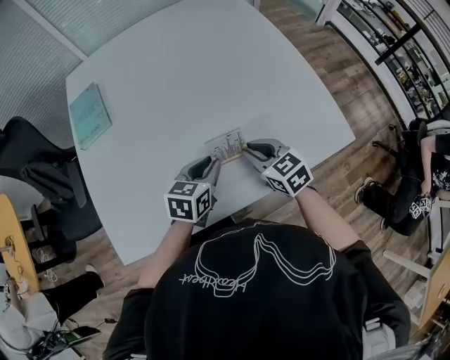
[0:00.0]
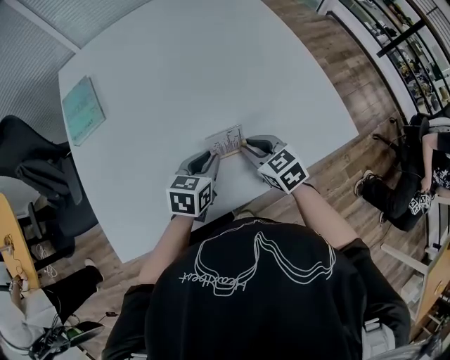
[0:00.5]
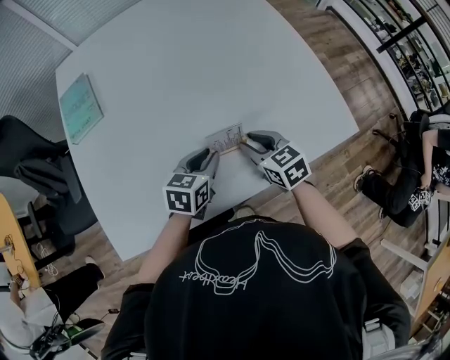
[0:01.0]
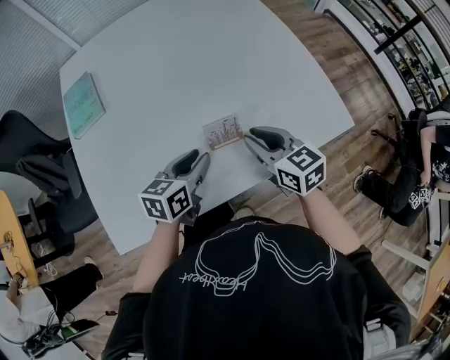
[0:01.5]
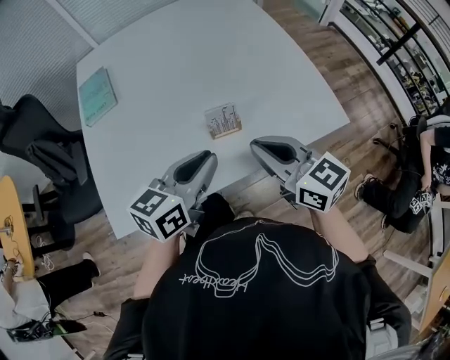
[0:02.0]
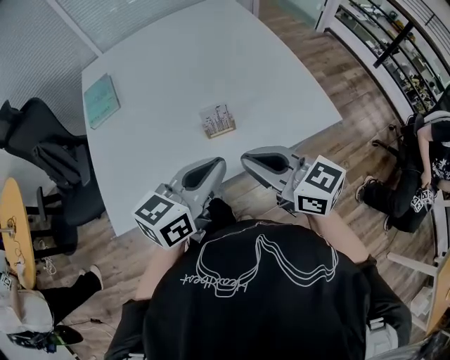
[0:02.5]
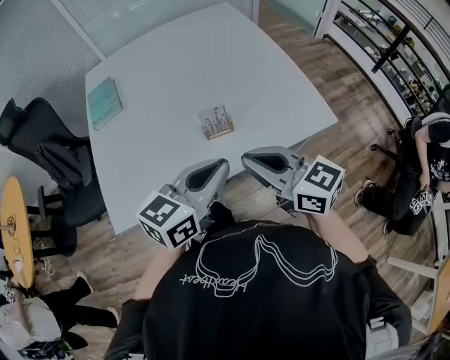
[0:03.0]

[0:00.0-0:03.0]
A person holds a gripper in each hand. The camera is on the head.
0:00.0 to 0:01.5: The right gripper travels upward by roughly 5 cm.
0:01.5 to 0:03.0: The left gripper heads upward, backward and to the right, covering some 25 cm, rotates approximately 20 degrees, and closes its fingers; the right gripper is displaced backward and upward by approximately 20 cm, and turns by about 20 degrees.

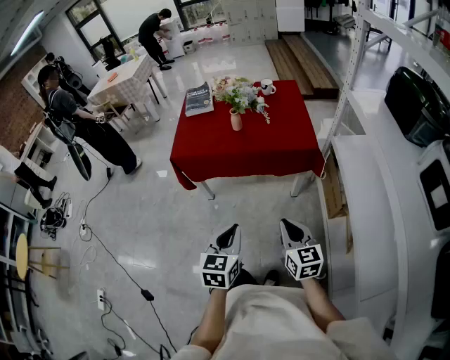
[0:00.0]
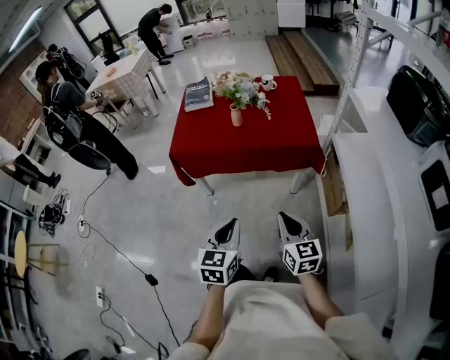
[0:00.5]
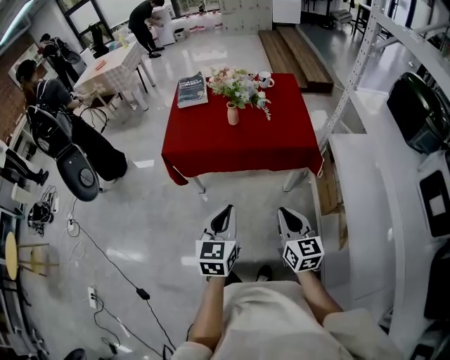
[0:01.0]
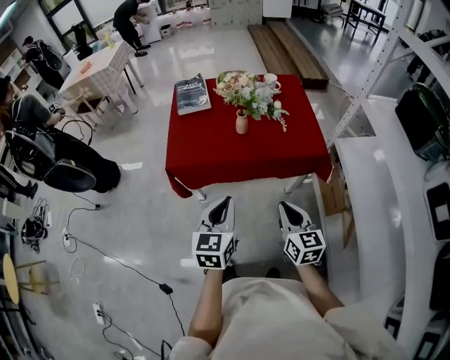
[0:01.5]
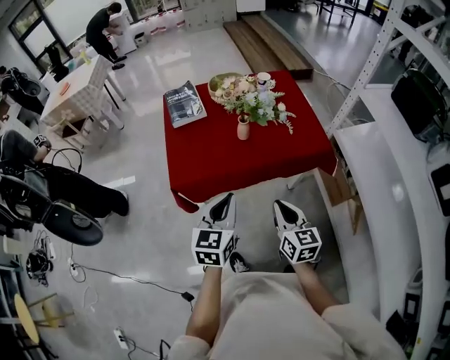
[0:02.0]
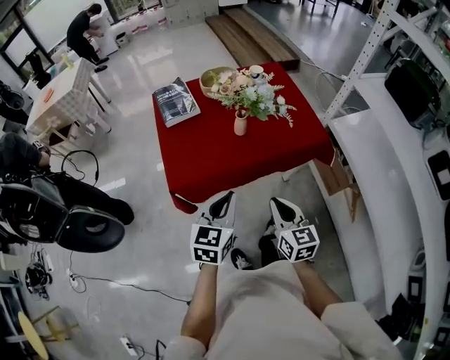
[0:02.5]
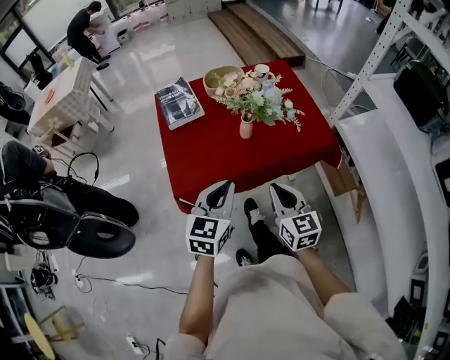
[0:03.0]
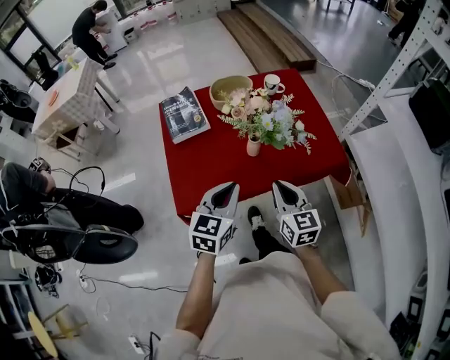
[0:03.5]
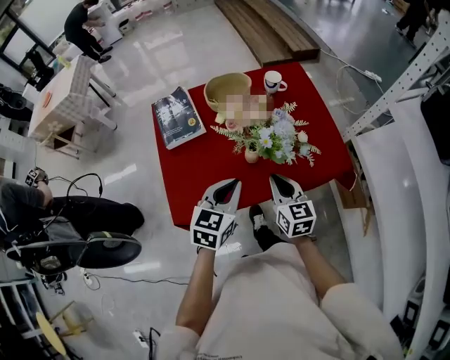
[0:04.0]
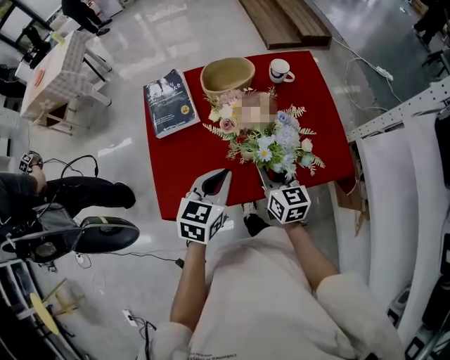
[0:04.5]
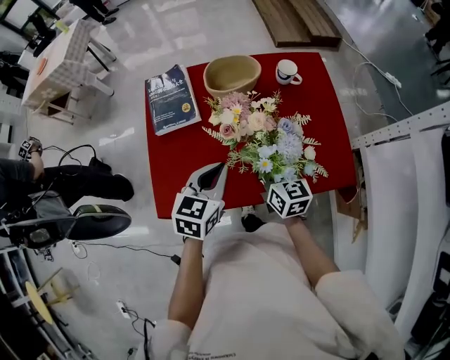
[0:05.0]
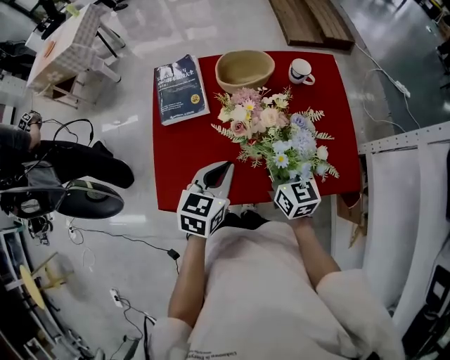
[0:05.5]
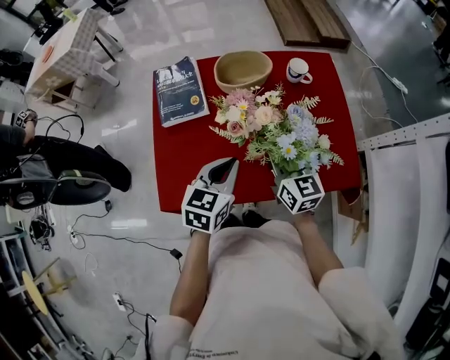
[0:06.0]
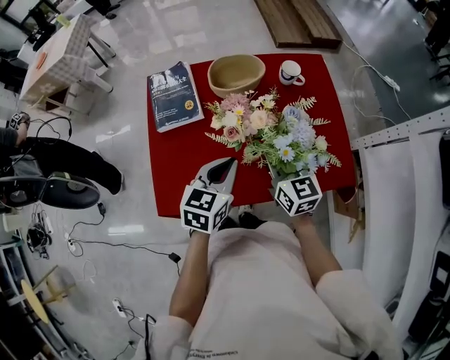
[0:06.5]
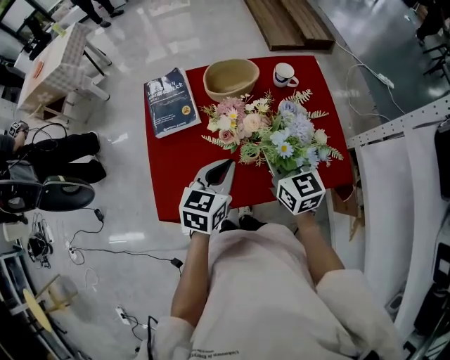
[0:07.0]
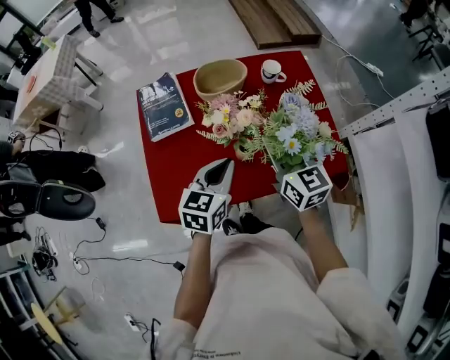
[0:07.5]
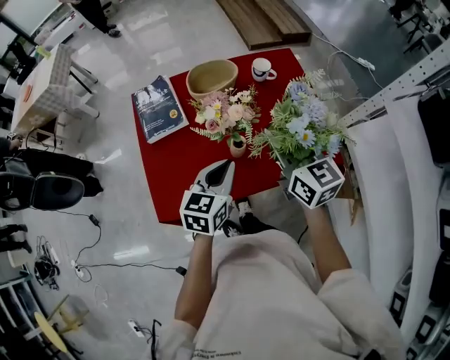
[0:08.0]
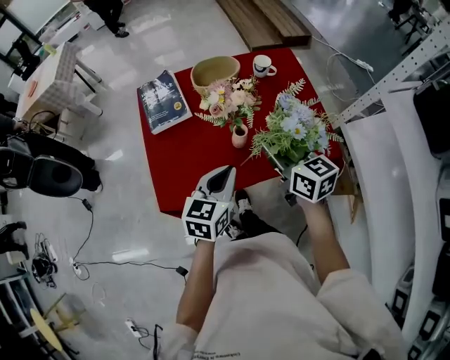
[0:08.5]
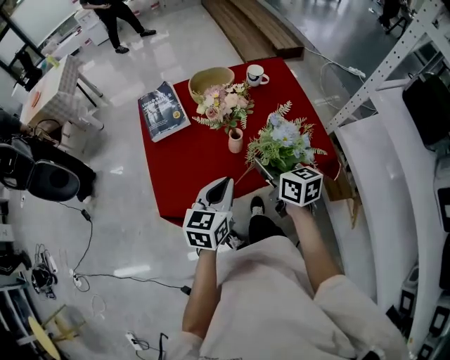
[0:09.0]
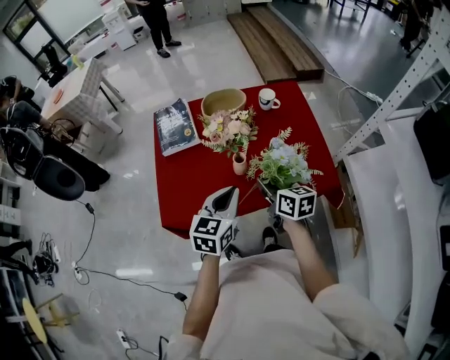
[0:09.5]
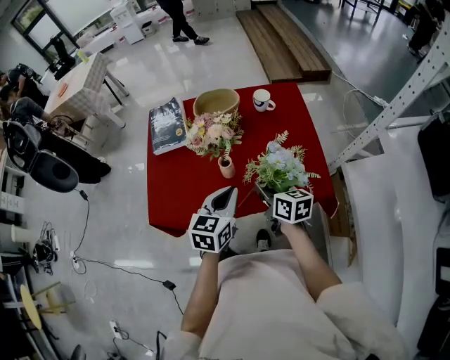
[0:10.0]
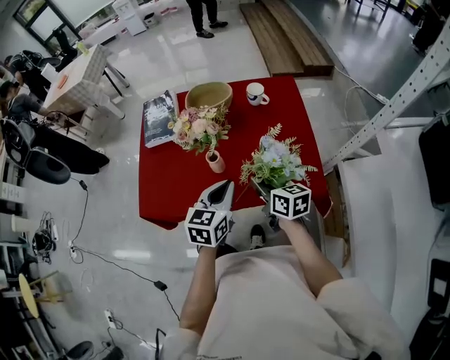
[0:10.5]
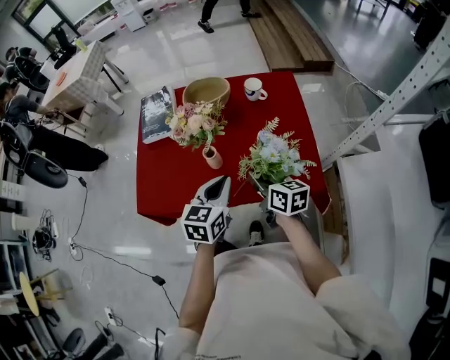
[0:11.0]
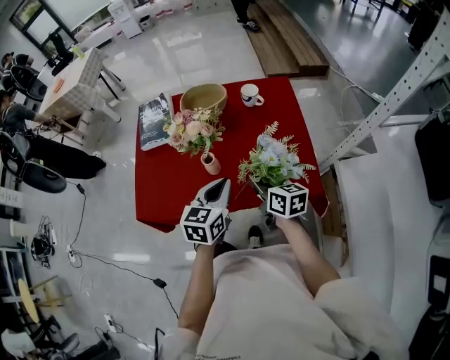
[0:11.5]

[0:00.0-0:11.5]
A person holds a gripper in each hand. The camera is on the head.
0:00.0 to 0:02.0: The grippers both shift forward and to the left by about 30 cm.
0:02.0 to 0:04.0: The grippers both shift forward by roughly 25 cm.
0:04.0 to 0:06.0: The two grippers go about 10 cm forward. The right gripper opens, then closes once more.
0:06.0 to 0:07.5: The right gripper moves upward, some 10 cm.
0:07.5 to 0:09.5: The right gripper is displaced backward and downward by roughly 10 cm, and rotates some 30 degrees, while the left gripper is displaced backward by approximately 10 cm.
0:09.5 to 0:11.5: The grippers both shift to the right by approximately 10 cm.

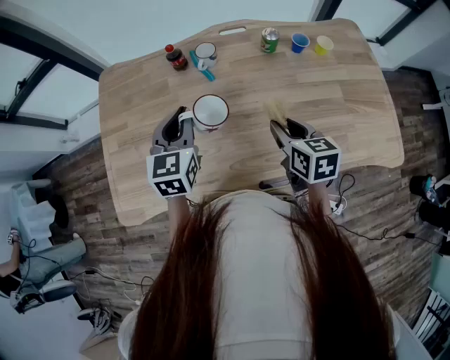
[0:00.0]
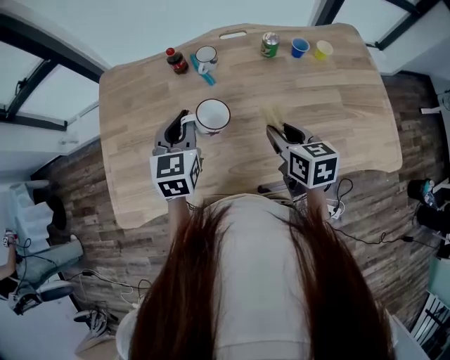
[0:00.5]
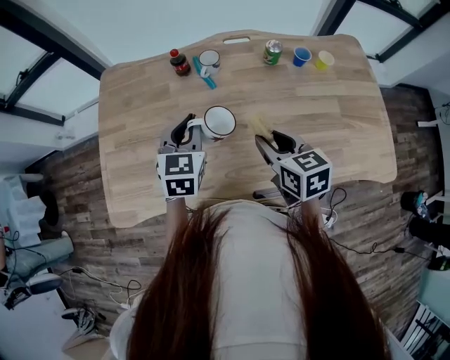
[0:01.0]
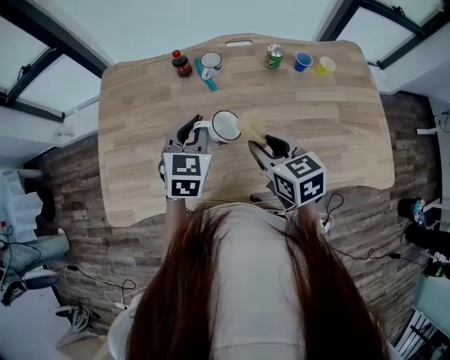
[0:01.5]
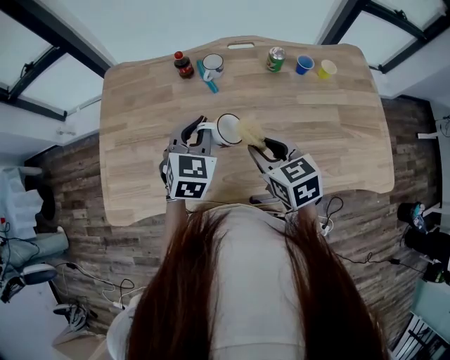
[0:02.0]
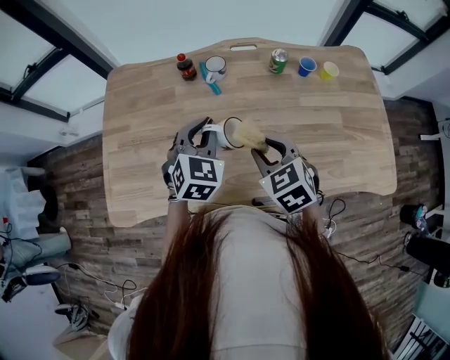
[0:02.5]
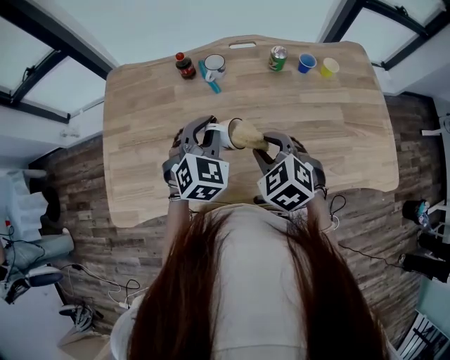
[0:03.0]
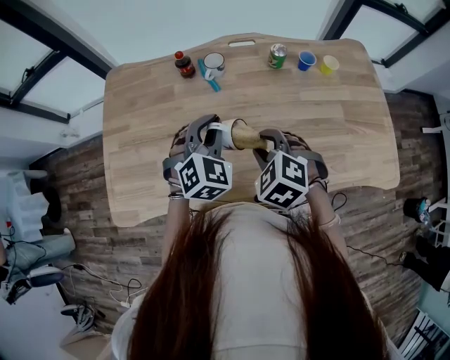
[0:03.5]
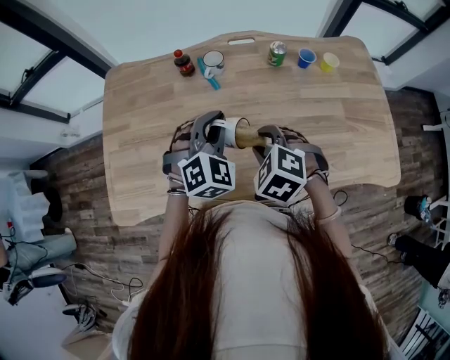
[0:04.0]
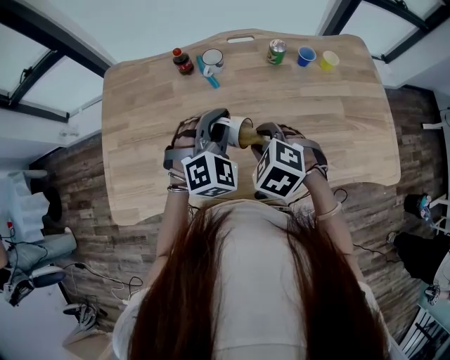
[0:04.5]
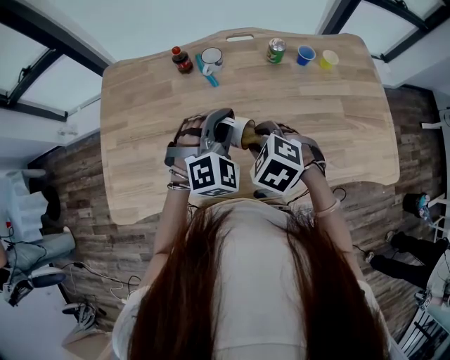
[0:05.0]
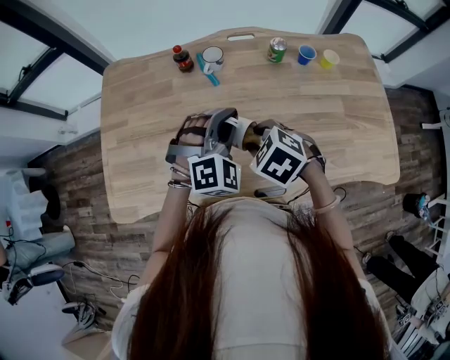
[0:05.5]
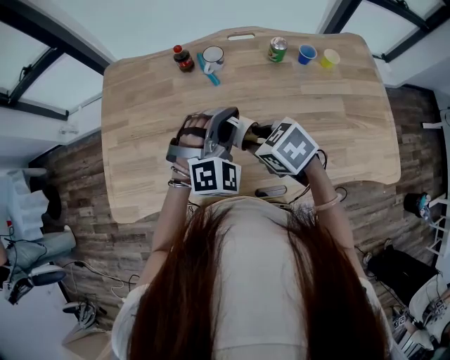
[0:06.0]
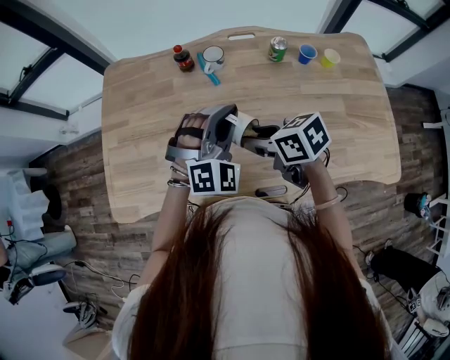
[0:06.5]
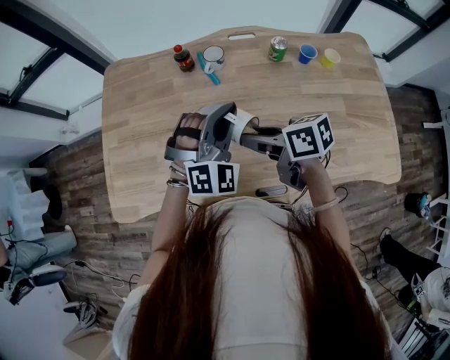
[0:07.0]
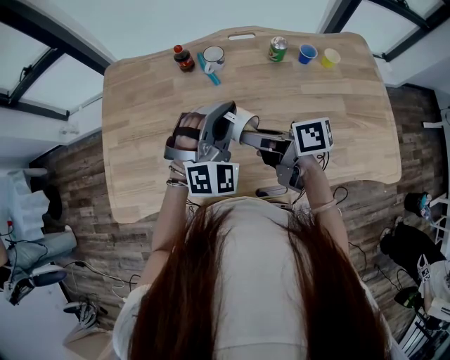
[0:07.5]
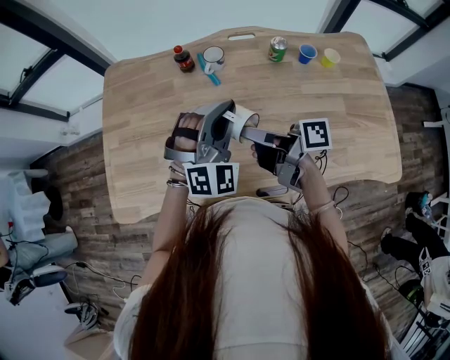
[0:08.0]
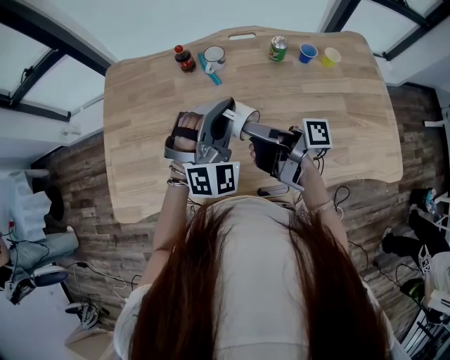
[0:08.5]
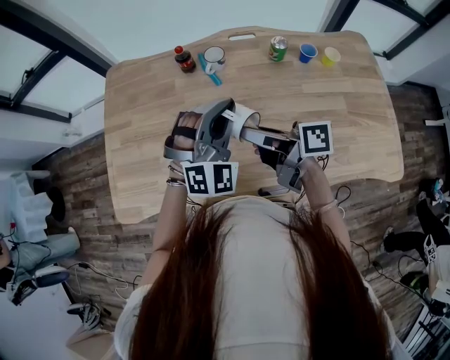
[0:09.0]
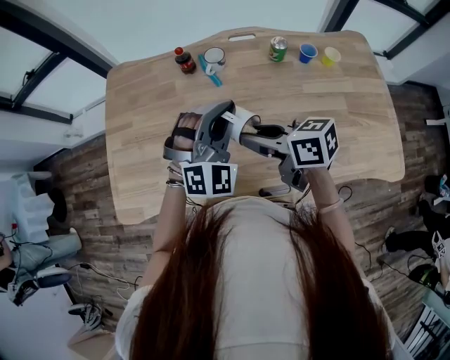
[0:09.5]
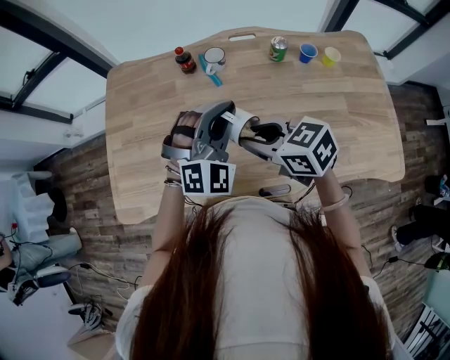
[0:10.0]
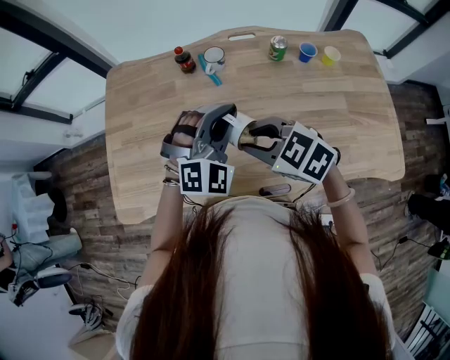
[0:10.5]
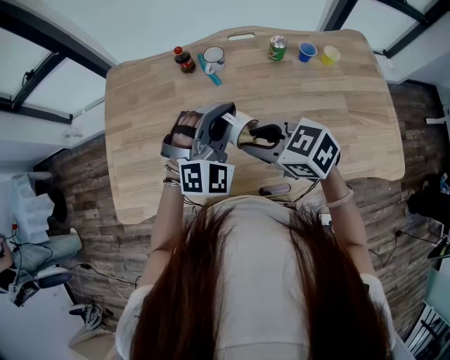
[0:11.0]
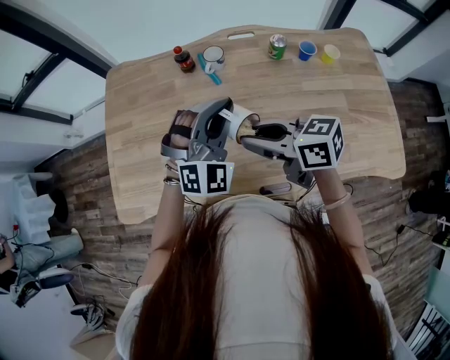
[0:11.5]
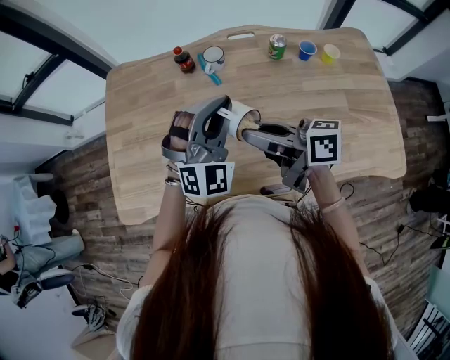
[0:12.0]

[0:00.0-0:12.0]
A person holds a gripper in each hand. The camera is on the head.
0:00.0 to 0:02.0: The right gripper moves to the left, roughly 5 cm, and swivels approximately 20 degrees.
0:02.0 to 0:04.0: The left gripper changes its angle by about 30 degrees; the right gripper rotates around the line of its fingers by about 40 degrees, counterclockwise from behind.
0:04.0 to 0:06.0: The right gripper swivels about 30 degrees.
0:06.0 to 0:08.0: The right gripper moves about 5 cm, and tilts its fingers about 50 degrees upward.
0:08.0 to 0:10.0: The right gripper rotates around the line of its fingers by roughly 60 degrees, counterclockwise from behind.
0:10.0 to 0:12.0: The right gripper turns by roughly 40 degrees.
